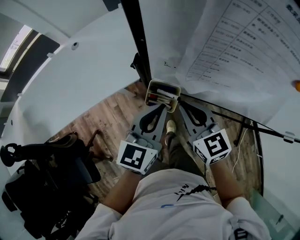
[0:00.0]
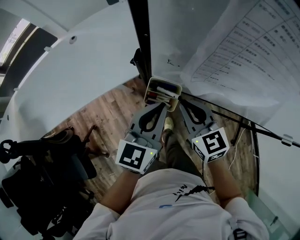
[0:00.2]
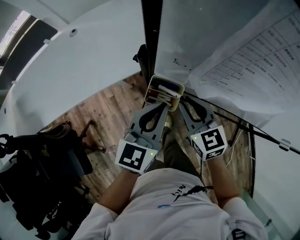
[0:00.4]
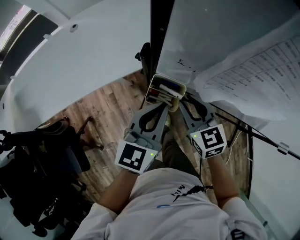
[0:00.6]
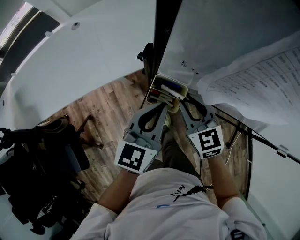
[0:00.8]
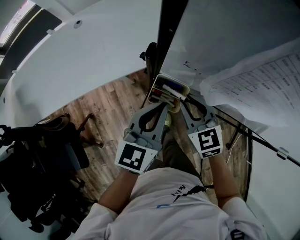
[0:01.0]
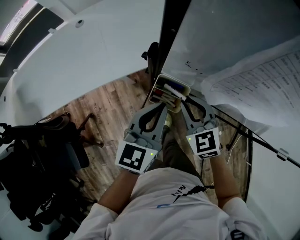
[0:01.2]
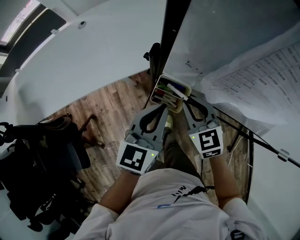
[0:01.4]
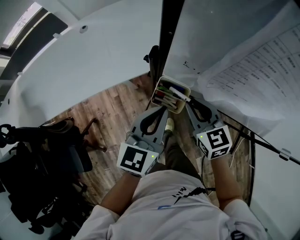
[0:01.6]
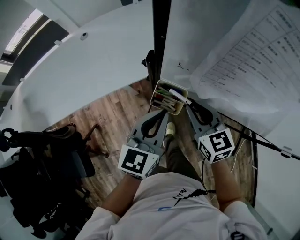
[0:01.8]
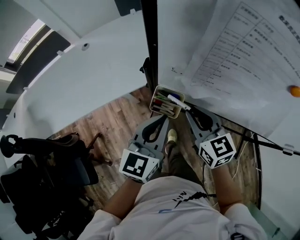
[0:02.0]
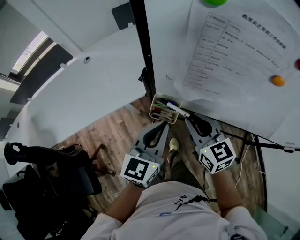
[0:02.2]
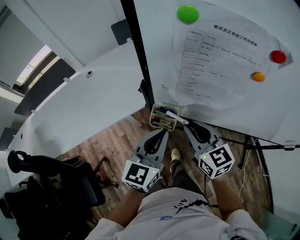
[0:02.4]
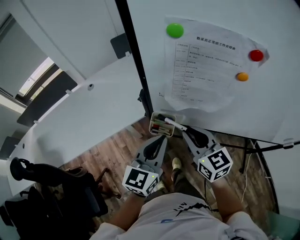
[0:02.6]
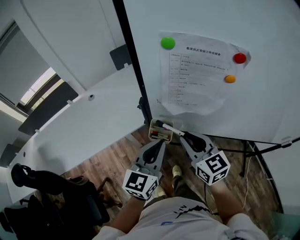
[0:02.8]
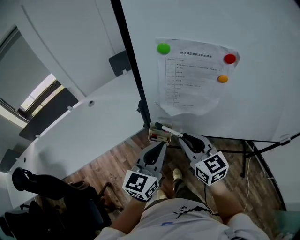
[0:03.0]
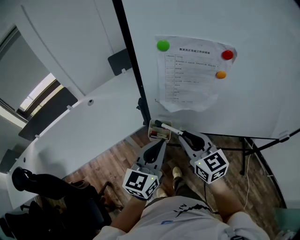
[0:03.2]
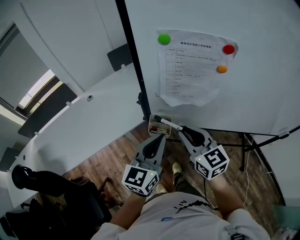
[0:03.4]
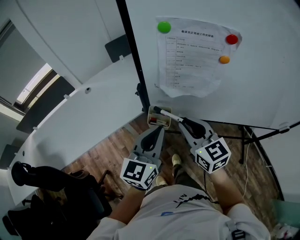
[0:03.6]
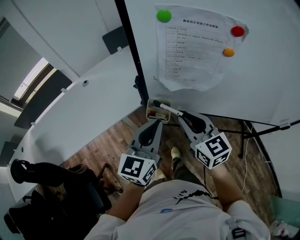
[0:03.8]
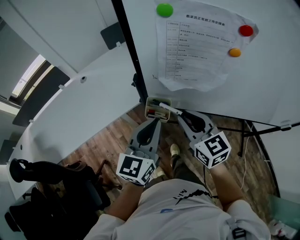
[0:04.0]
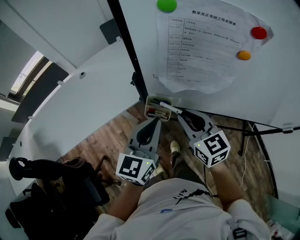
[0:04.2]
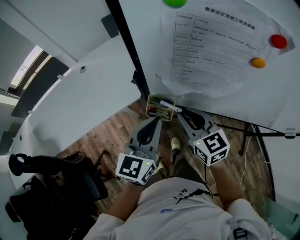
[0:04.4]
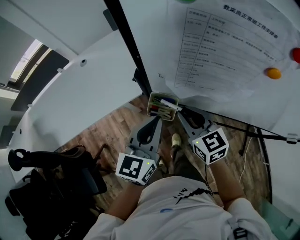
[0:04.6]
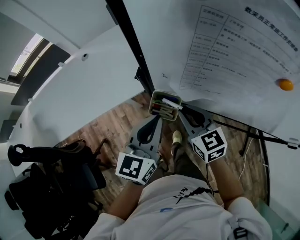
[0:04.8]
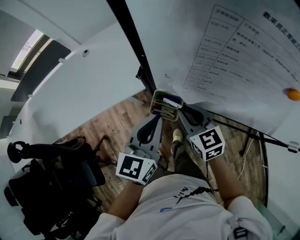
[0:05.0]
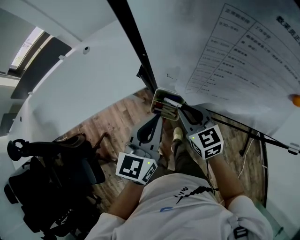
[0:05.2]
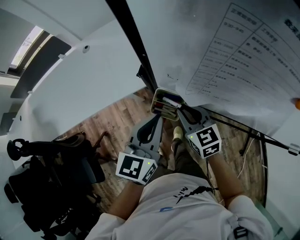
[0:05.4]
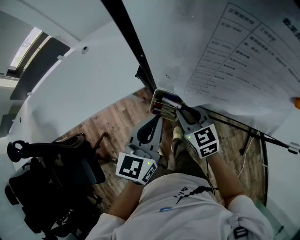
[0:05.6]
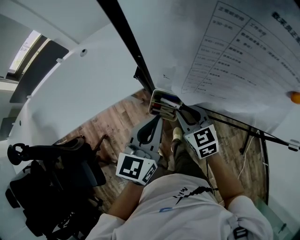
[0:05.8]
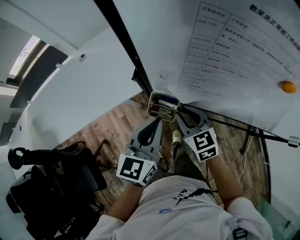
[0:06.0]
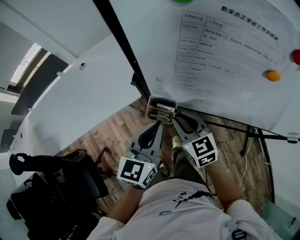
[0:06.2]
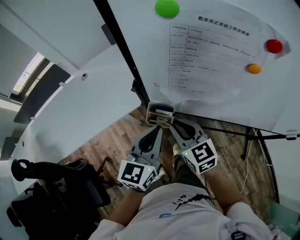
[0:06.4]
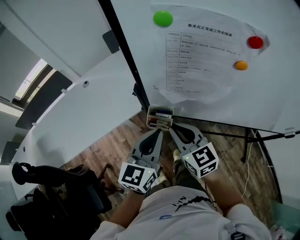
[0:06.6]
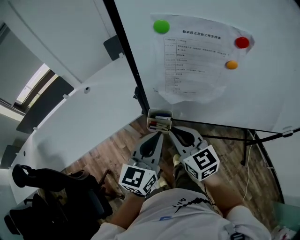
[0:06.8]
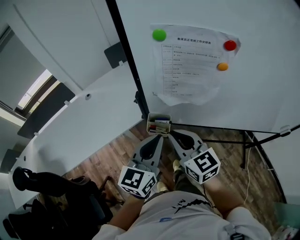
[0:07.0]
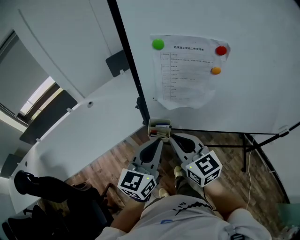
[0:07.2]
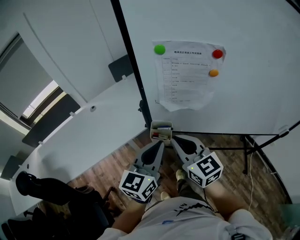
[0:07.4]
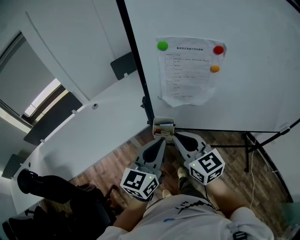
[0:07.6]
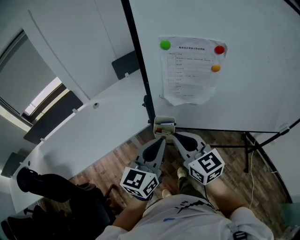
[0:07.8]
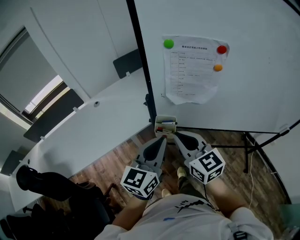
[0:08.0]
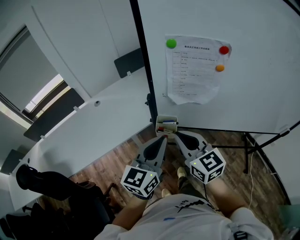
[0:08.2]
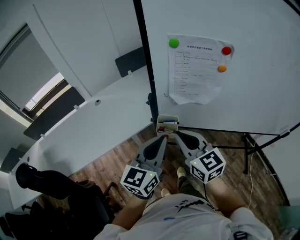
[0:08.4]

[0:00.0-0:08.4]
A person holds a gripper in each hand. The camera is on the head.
0:00.0 to 0:01.4: The right gripper shifts approximately 10 cm downward.
0:01.4 to 0:02.8: Both grippers move upward and backward, about 15 cm. The right gripper rotates approximately 30 degrees.
0:02.8 to 0:04.2: The grippers make only small movements.
0:04.2 to 0:05.6: The left gripper moves downward, about 5 cm. Meanwhile the right gripper heads downward and forward, covering about 15 cm.
0:05.6 to 0:07.0: The right gripper shifts roughly 20 cm upward and backward, and rotates roughly 20 degrees. Meanwhile the left gripper is displaced upward and backward by approximately 15 cm.
0:07.0 to 0:08.4: The left gripper moves roughly 5 cm, while the right gripper changes place by about 5 cm.

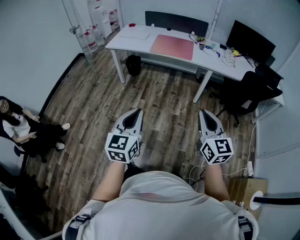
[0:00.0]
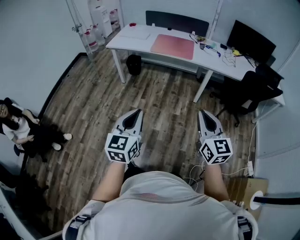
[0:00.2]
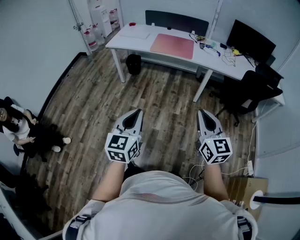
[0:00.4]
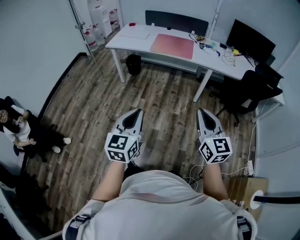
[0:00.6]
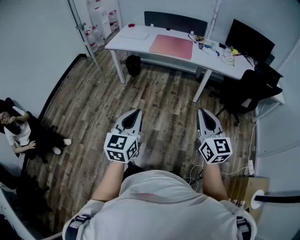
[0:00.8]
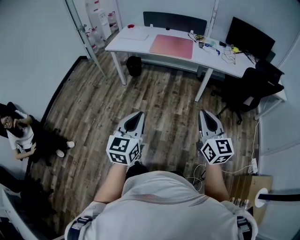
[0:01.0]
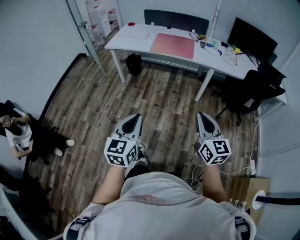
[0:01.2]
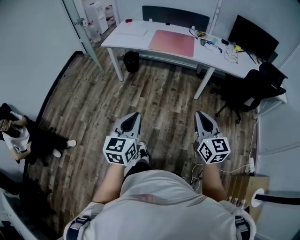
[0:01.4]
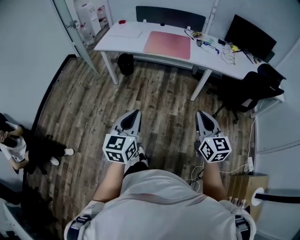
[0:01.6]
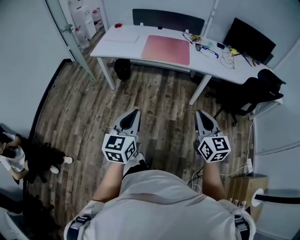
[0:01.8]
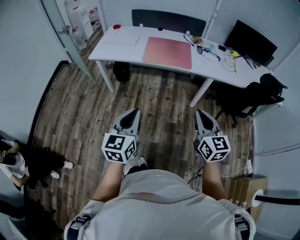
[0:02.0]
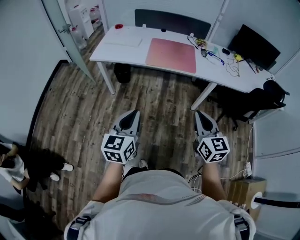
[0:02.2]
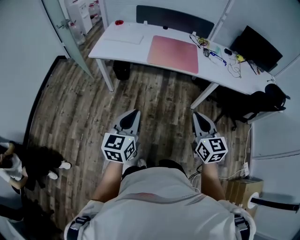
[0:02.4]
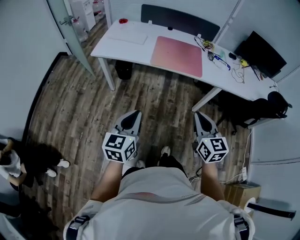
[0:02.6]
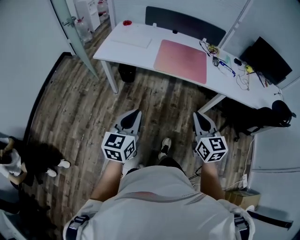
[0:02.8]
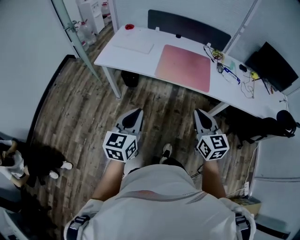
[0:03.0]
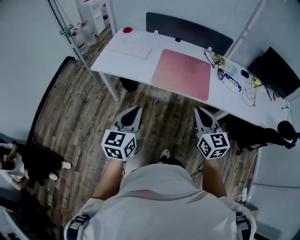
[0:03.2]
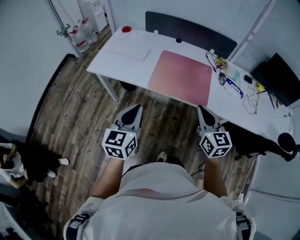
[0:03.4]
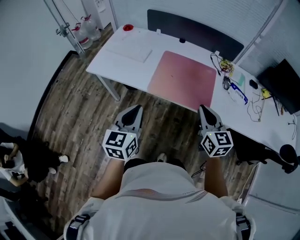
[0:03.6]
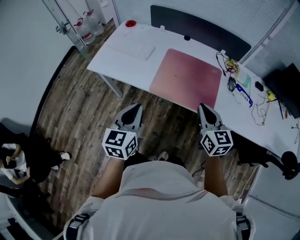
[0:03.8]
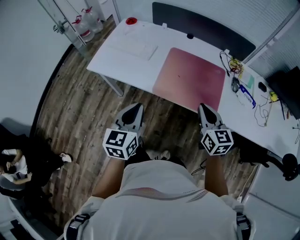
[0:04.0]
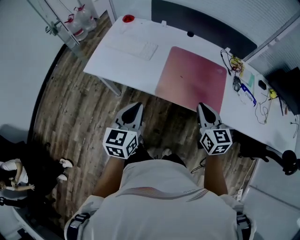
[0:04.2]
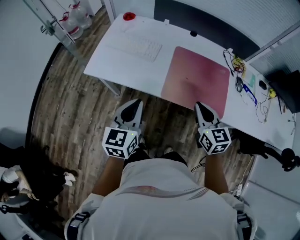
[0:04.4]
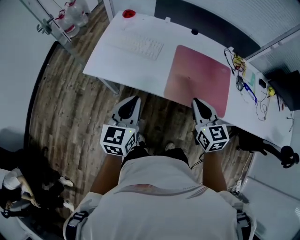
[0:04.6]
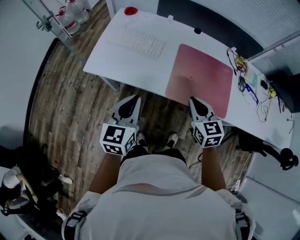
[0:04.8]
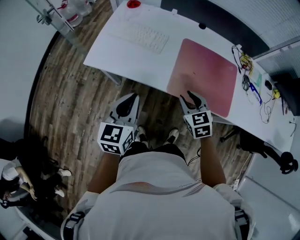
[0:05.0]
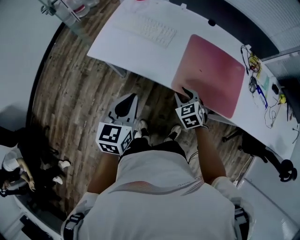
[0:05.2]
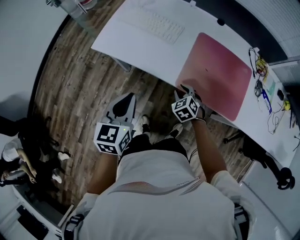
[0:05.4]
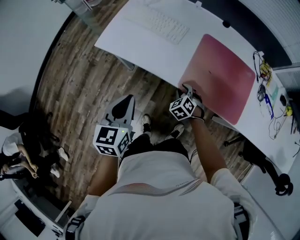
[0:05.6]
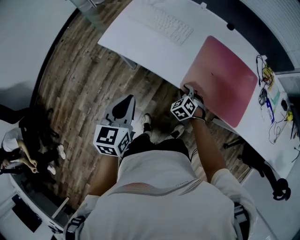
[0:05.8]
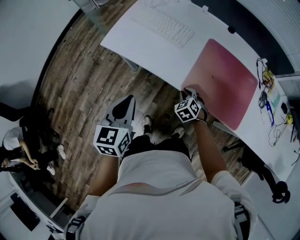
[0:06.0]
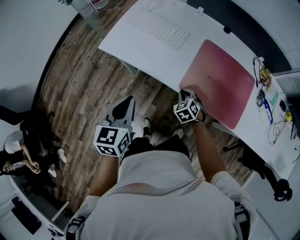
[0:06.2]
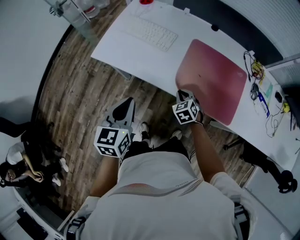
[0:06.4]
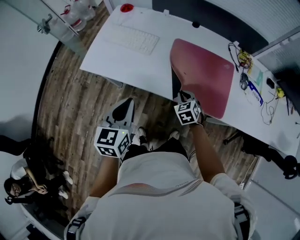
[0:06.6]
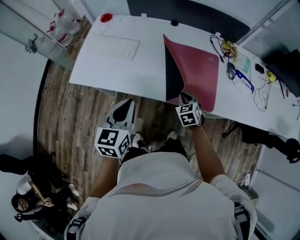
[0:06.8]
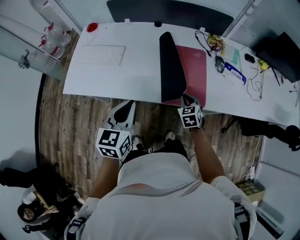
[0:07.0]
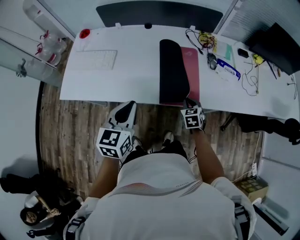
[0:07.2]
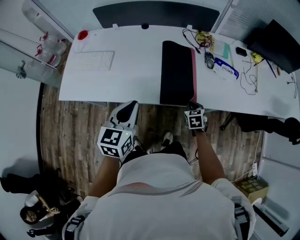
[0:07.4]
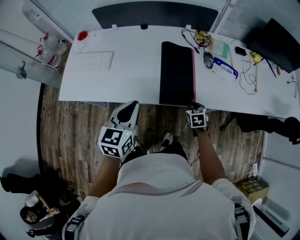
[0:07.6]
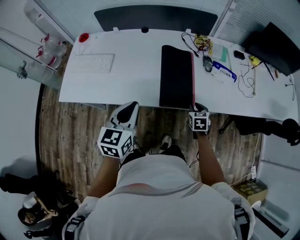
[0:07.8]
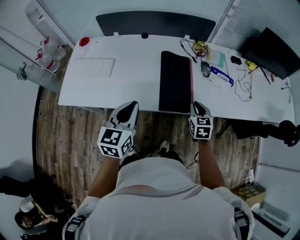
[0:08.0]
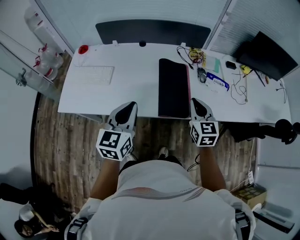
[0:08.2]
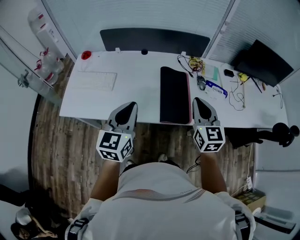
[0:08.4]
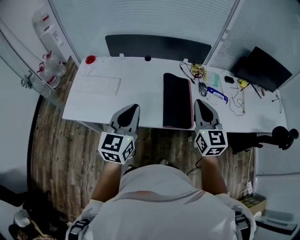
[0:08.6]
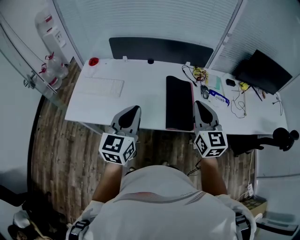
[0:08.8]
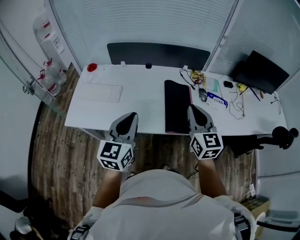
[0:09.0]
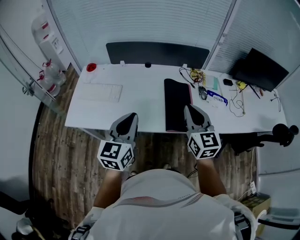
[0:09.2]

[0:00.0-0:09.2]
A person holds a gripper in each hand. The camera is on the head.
0:00.0 to 0:01.6: Both grippers travel together forward, roughly 10 cm.
0:01.6 to 0:03.0: The two grippers go approximately 35 cm forward.
0:03.0 to 0:04.6: The grippers both shift forward by some 30 cm.
0:04.6 to 0:06.2: The left gripper moves roughly 5 cm, while the right gripper travels downward by some 25 cm, points its fingers roughly 30 degrees further downward, and opens, then closes once more.
0:06.2 to 0:07.6: The right gripper ends up about 35 cm from where it was, and twists about 50 degrees clockwise, seen from behind. The left gripper shifts by some 30 cm, and turns by roughly 30 degrees.
0:07.6 to 0:09.2: The left gripper travels upward and to the left by about 15 cm; the right gripper heads upward, covering about 35 cm, and angles its fingers upward, by about 50 degrees.

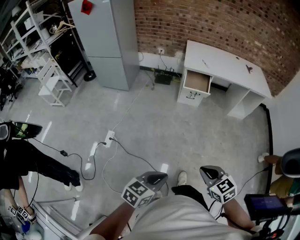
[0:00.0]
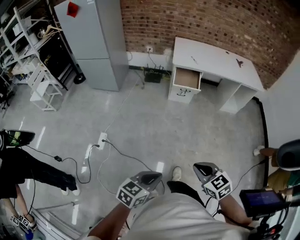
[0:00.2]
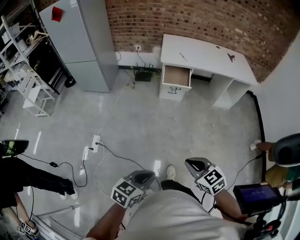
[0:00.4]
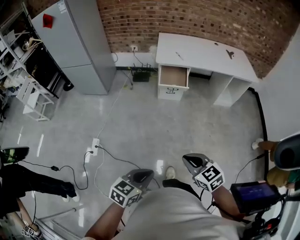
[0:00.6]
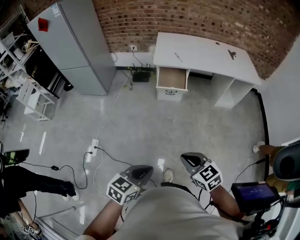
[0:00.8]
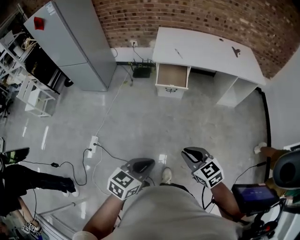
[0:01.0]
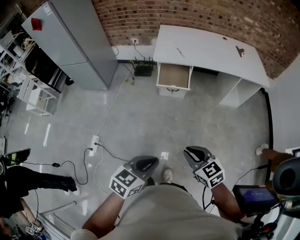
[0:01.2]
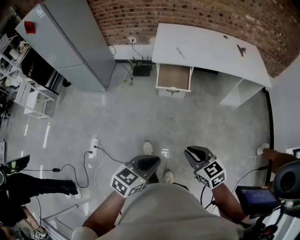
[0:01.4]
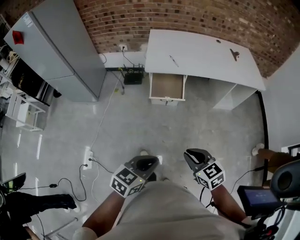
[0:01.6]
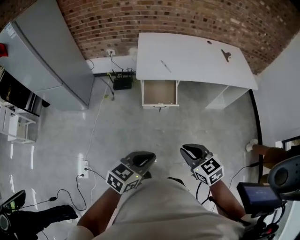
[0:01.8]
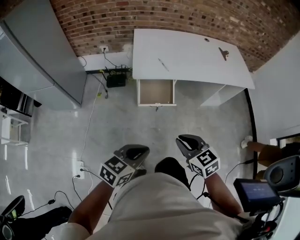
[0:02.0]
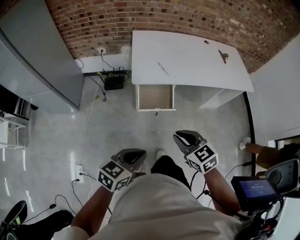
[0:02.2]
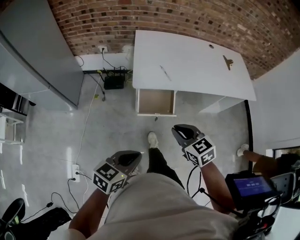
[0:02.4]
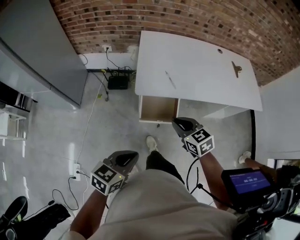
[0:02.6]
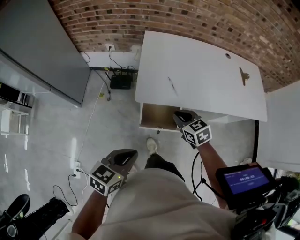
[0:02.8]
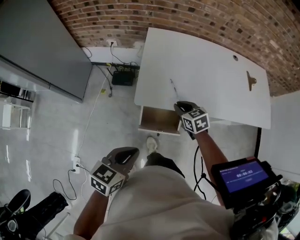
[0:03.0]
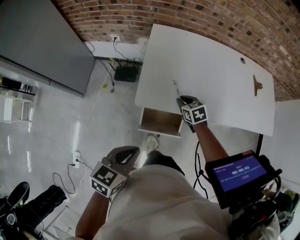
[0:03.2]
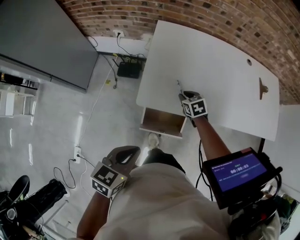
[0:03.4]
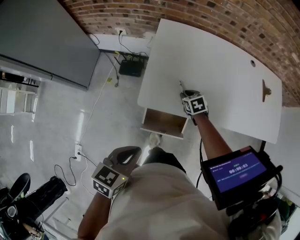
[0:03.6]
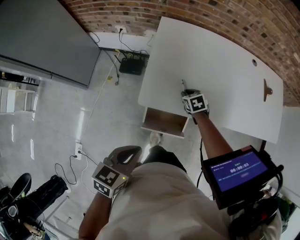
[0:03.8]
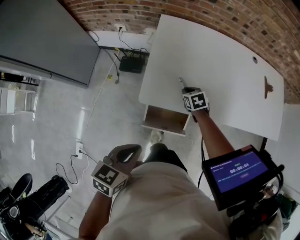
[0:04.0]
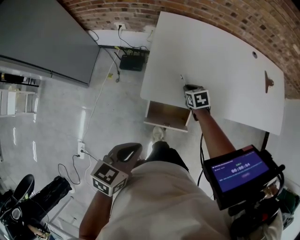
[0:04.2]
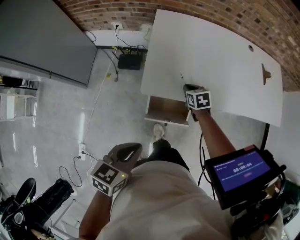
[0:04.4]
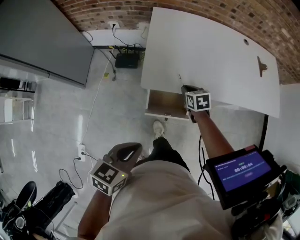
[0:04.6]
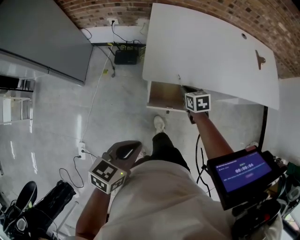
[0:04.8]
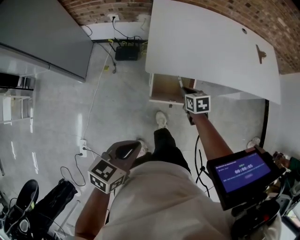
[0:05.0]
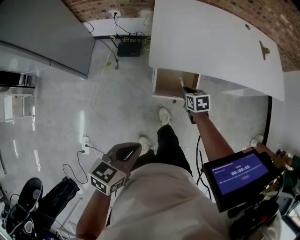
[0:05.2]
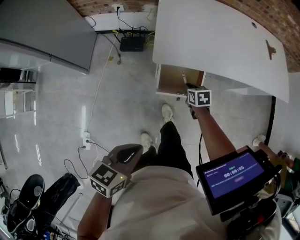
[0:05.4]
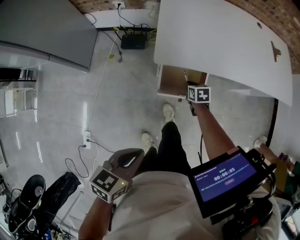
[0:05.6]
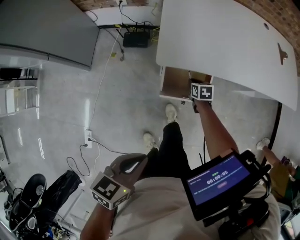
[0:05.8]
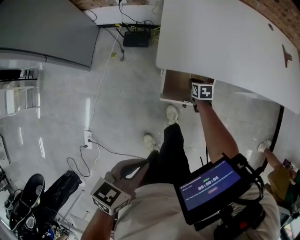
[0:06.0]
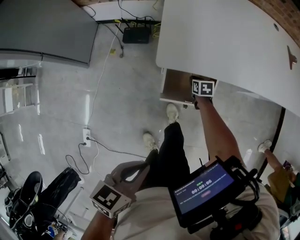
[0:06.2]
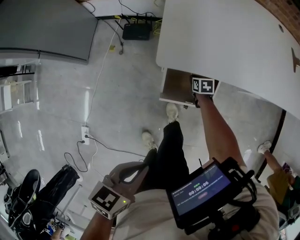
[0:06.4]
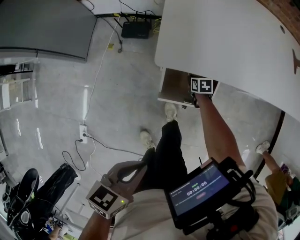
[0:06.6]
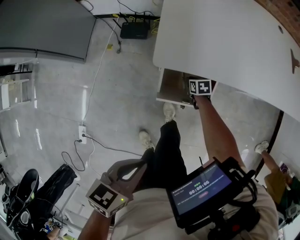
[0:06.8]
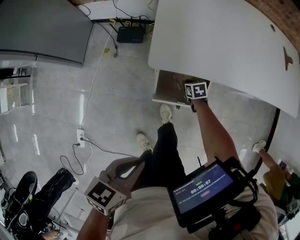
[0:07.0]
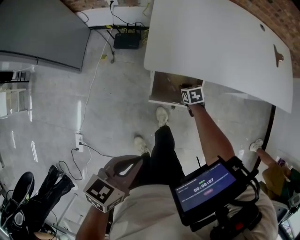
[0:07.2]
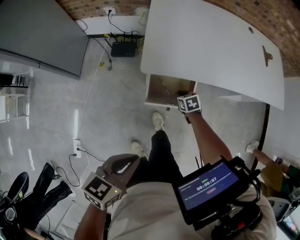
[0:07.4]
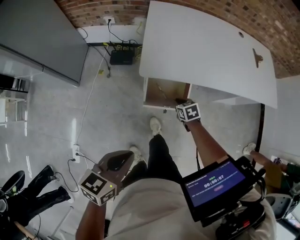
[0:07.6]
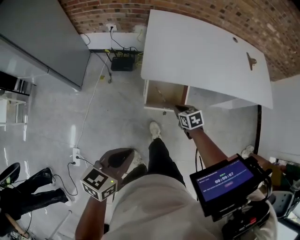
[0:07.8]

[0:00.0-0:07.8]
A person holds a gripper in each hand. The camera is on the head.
0:00.0 to 0:01.6: Both grippers move forward, some 40 cm.
0:01.6 to 0:03.2: The two grippers travel together, forward, approximately 60 cm.
0:03.2 to 0:04.6: The left gripper heads backward, covering some 5 cm.
0:04.6 to 0:06.2: The left gripper shifts roughly 10 cm backward and downward; the right gripper heads downward, covering some 25 cm.
0:06.2 to 0:07.8: The left gripper travels upward by roughly 10 cm. The right gripper goes some 25 cm upward and backward.
